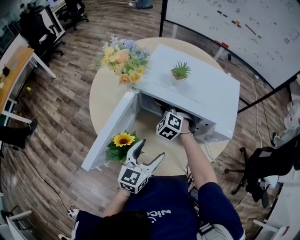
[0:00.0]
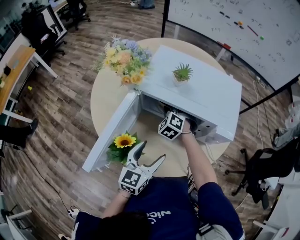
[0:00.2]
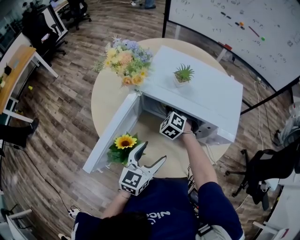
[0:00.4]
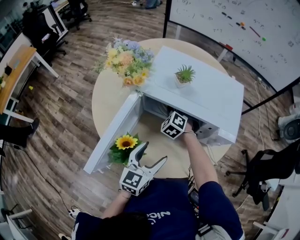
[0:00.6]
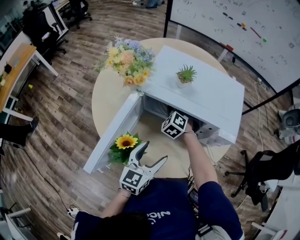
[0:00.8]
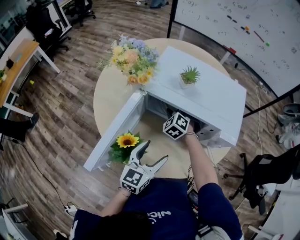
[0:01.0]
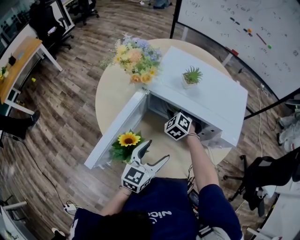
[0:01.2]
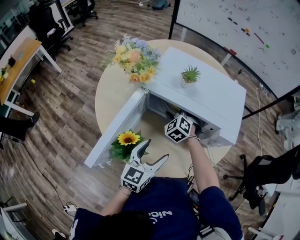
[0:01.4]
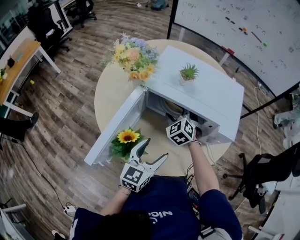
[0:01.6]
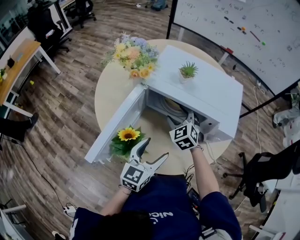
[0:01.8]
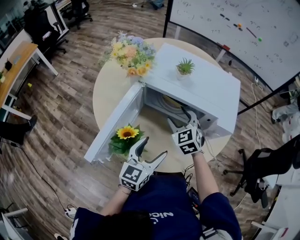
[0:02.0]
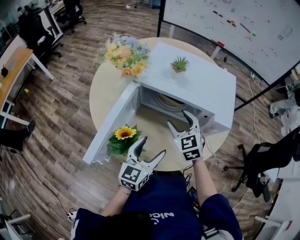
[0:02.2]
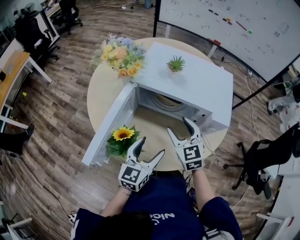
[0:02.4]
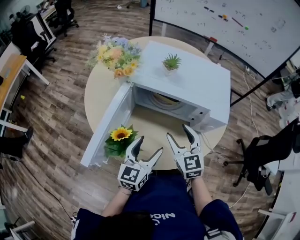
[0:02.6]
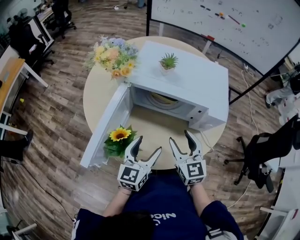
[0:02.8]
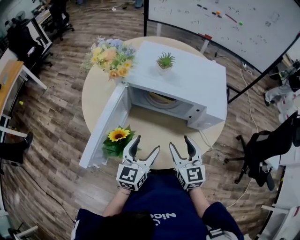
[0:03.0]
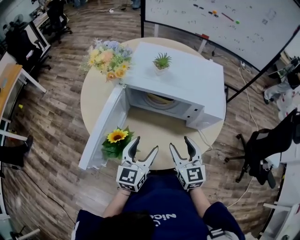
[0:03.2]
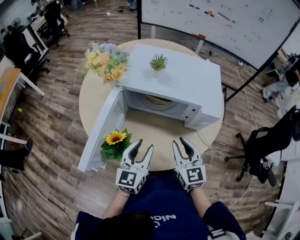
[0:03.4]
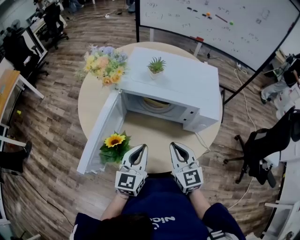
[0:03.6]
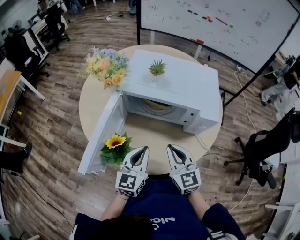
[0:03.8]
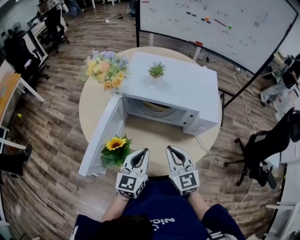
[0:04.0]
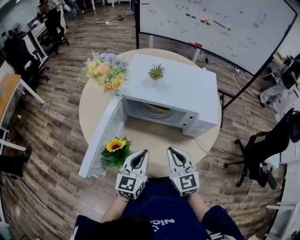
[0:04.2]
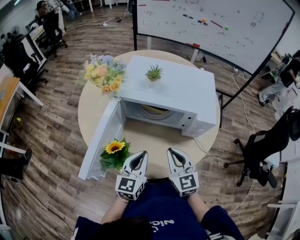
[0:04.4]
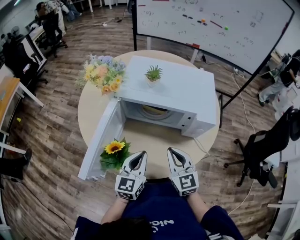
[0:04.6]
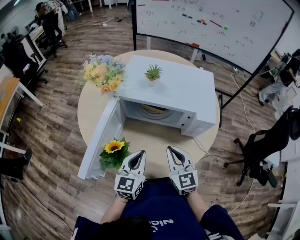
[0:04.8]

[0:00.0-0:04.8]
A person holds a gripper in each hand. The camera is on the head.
0:00.0 to 0:01.6: The right gripper opens up.
0:01.6 to 0:03.2: The right gripper heads backward and to the right, covering roughly 20 cm, and rotates around the line of its fingers by about 40 degrees, clockwise from behind.
0:03.2 to 0:04.8: The right gripper closes up. Meanwhile the left gripper closes.

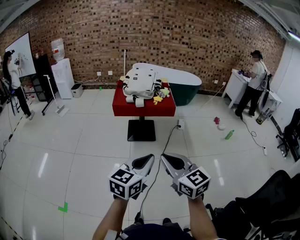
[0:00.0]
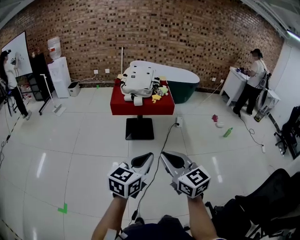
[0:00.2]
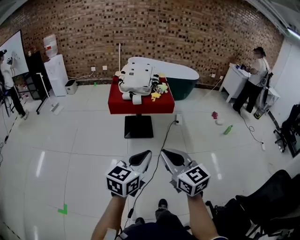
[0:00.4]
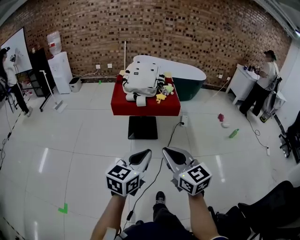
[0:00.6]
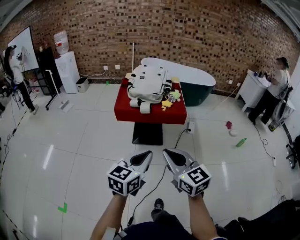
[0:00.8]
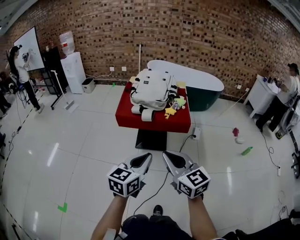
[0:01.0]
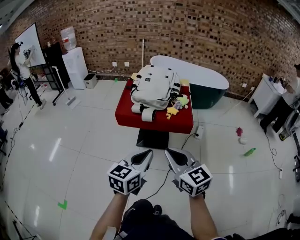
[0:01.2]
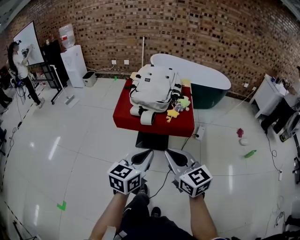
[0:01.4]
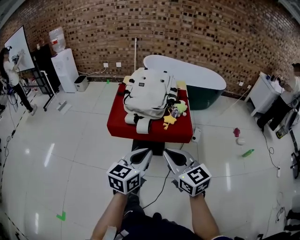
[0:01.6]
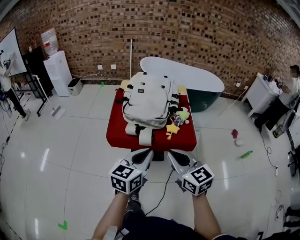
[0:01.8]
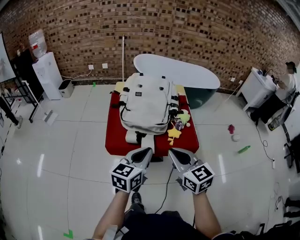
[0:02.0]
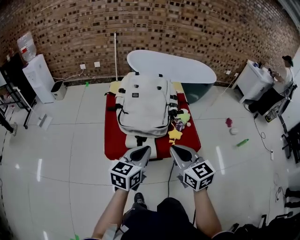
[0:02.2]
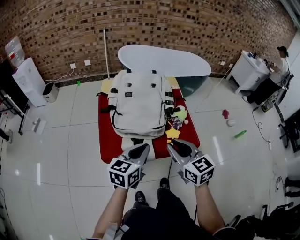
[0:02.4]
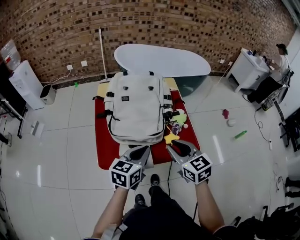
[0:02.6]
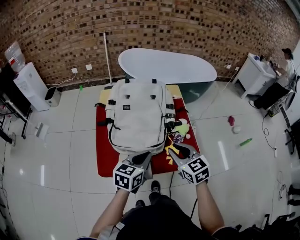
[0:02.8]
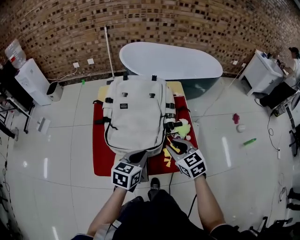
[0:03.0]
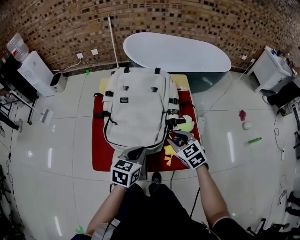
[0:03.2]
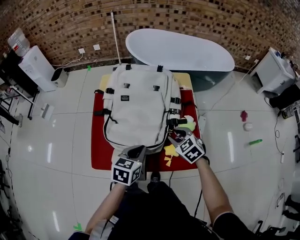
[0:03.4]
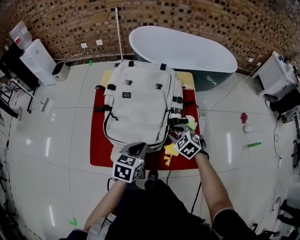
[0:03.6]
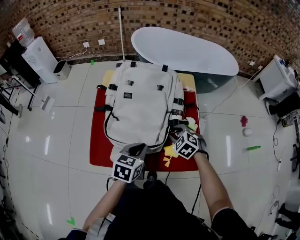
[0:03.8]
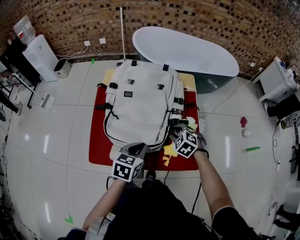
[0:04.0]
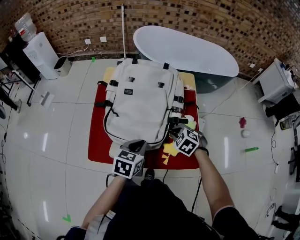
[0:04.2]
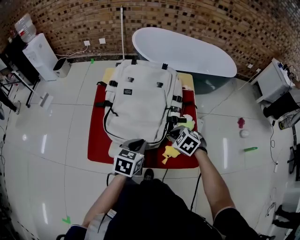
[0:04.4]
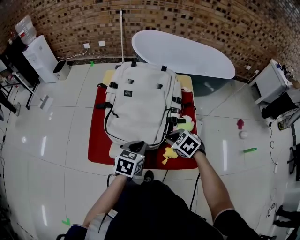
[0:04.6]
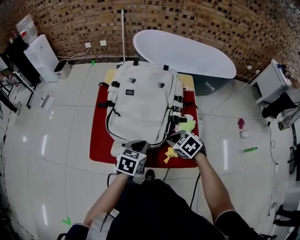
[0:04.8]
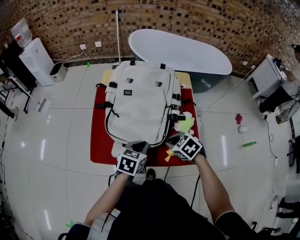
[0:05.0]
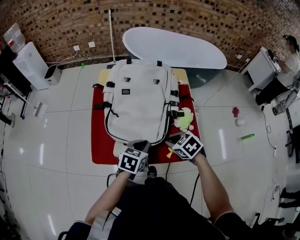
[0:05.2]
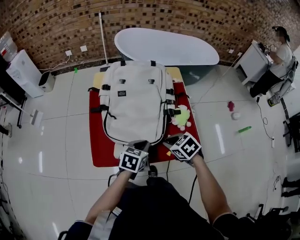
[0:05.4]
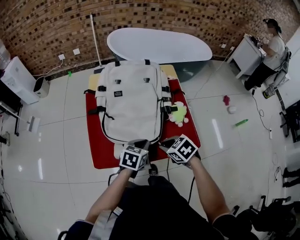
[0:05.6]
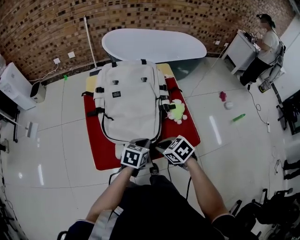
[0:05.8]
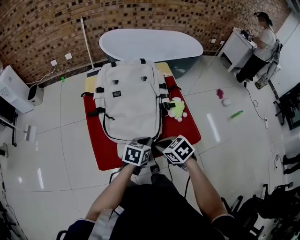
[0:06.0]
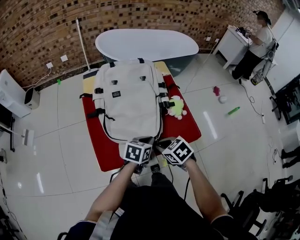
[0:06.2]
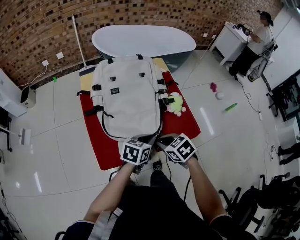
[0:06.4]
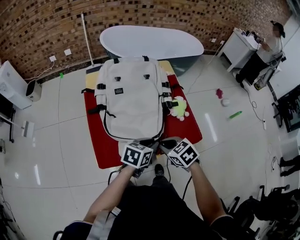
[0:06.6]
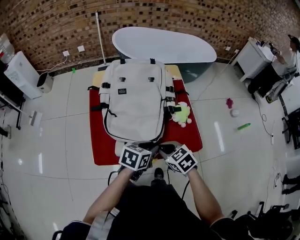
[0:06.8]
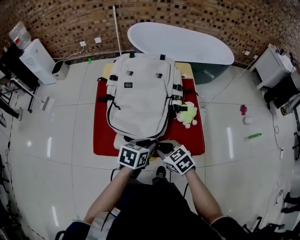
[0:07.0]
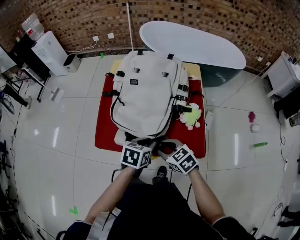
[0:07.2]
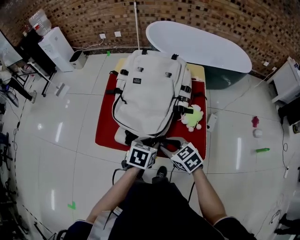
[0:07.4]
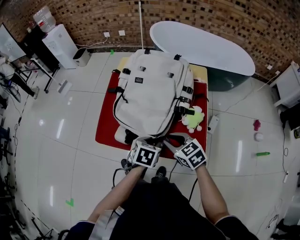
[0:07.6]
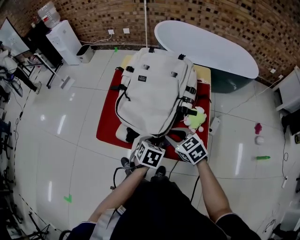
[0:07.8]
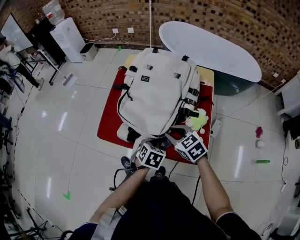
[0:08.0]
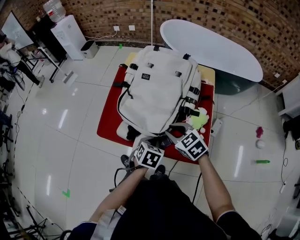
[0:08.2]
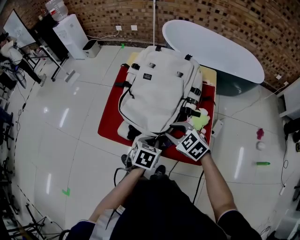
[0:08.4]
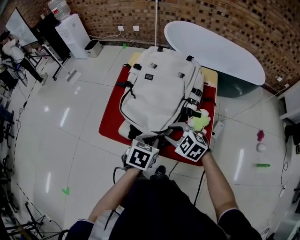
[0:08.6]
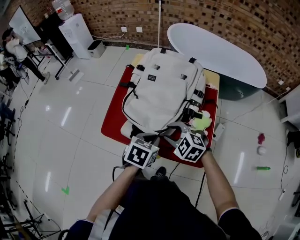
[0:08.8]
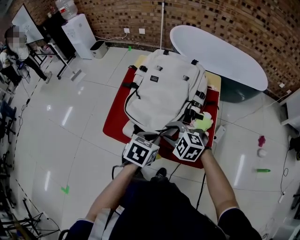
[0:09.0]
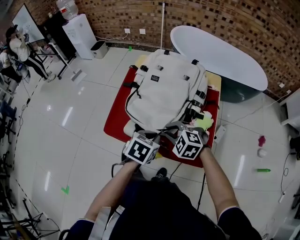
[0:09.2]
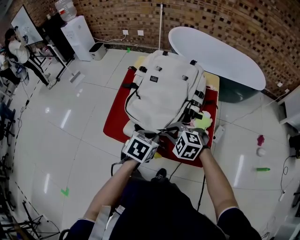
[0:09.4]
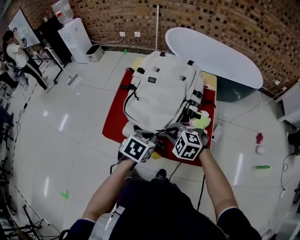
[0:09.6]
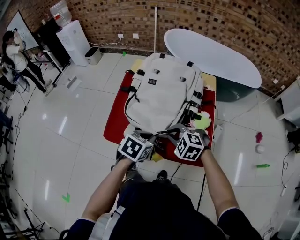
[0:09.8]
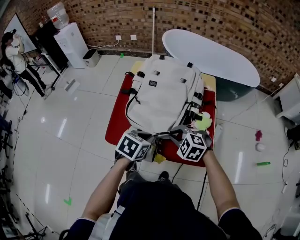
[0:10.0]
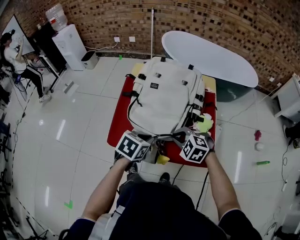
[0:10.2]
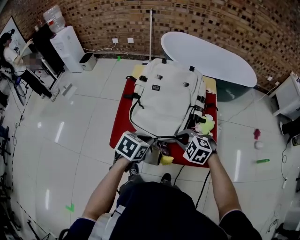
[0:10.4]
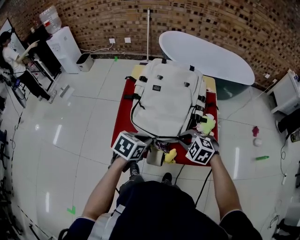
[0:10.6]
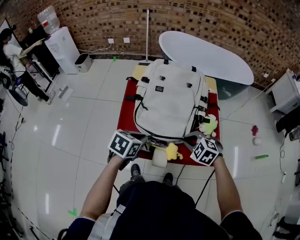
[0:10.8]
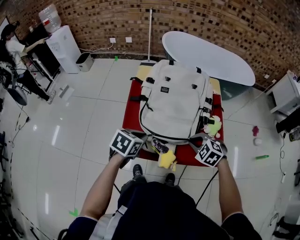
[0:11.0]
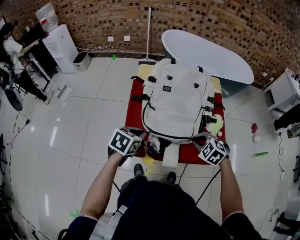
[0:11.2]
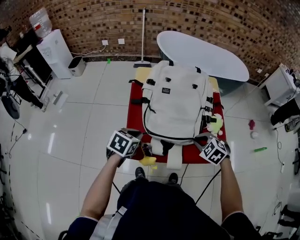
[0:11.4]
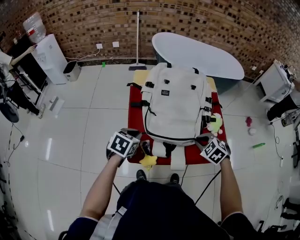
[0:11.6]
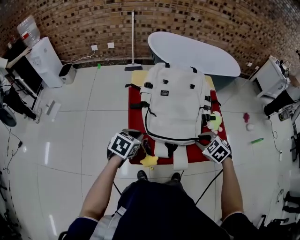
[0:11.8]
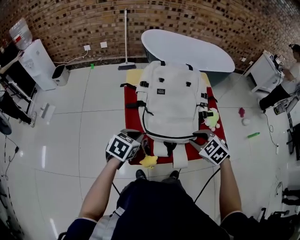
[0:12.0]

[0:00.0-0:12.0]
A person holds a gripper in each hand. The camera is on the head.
0:00.0 to 0:01.6: The two grippers travel together, forward, roughly 40 cm.
0:01.6 to 0:03.0: The grippers both shift forward and downward by some 35 cm. The right gripper rotates about 20 degrees, and opens its fingers, while the left gripper rotates about 20 degrees.
0:03.0 to 0:04.4: The right gripper travels downward by about 10 cm, and points its fingers about 30 degrees further downward.
0:04.4 to 0:06.0: The right gripper goes about 15 cm to the left and backward, and changes its angle by some 40 degrees, while the left gripper rotates approximately 20 degrees.
0:06.0 to 0:07.6: The left gripper turns by approximately 30 degrees, and opens up. Meanwhile the right gripper ends up some 5 cm from where it was, and rotates roughly 30 degrees.
0:07.6 to 0:09.0: The left gripper heads upward, covering some 5 cm, and closes up. The right gripper shifts by some 5 cm, and rolls counterclockwise, seen from behind, by roughly 40 degrees.
0:09.0 to 0:10.4: The left gripper travels to the left by about 5 cm, while the right gripper closes its fingers.
0:10.4 to 0:12.0: The left gripper goes approximately 15 cm to the left. The right gripper changes its angle by approximately 30 degrees.

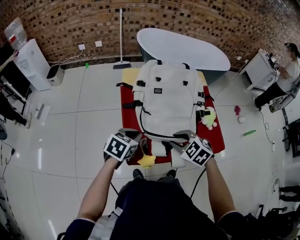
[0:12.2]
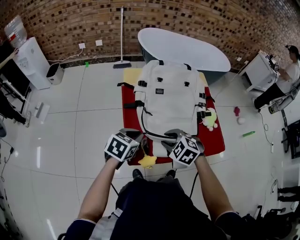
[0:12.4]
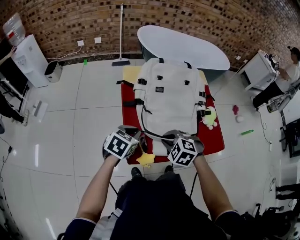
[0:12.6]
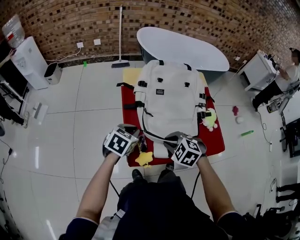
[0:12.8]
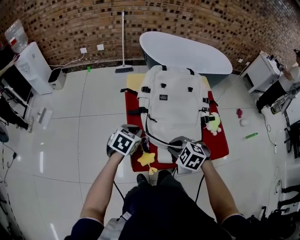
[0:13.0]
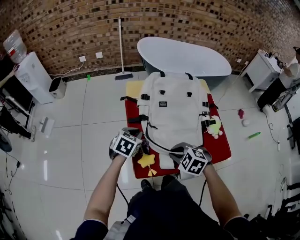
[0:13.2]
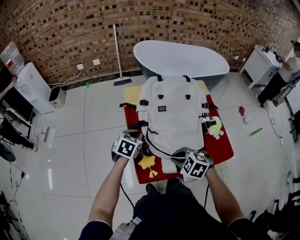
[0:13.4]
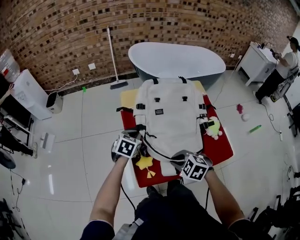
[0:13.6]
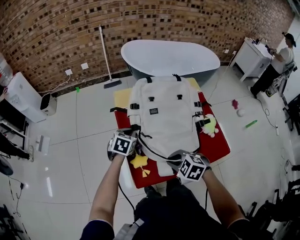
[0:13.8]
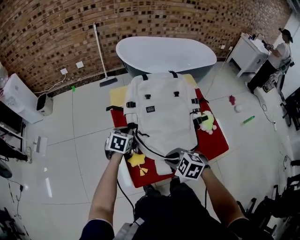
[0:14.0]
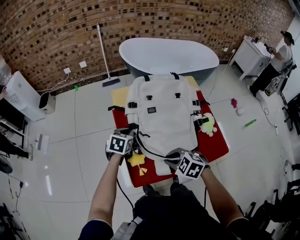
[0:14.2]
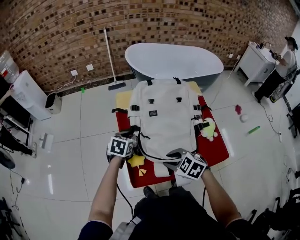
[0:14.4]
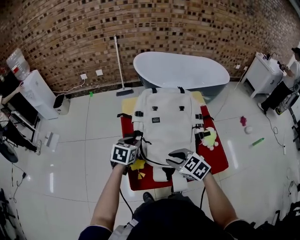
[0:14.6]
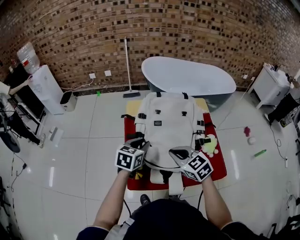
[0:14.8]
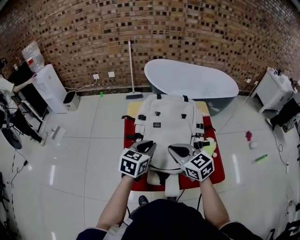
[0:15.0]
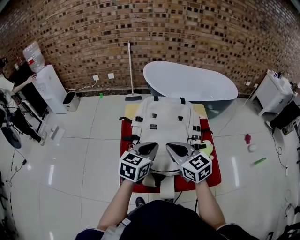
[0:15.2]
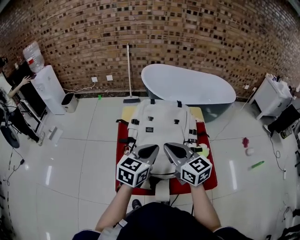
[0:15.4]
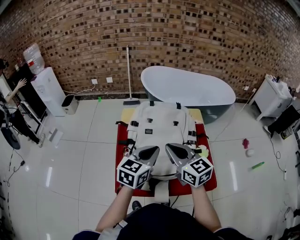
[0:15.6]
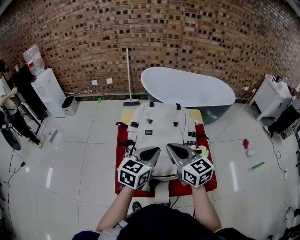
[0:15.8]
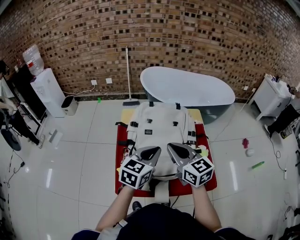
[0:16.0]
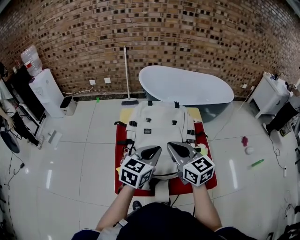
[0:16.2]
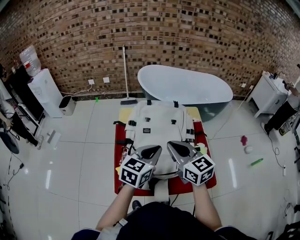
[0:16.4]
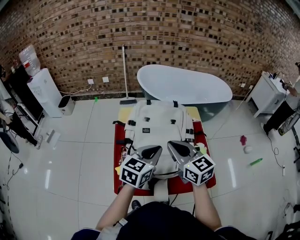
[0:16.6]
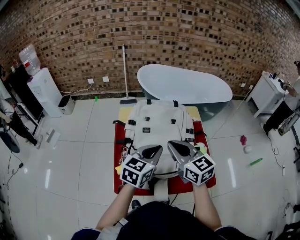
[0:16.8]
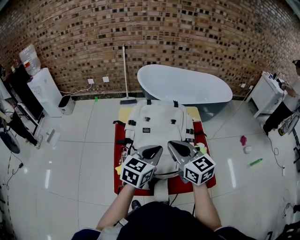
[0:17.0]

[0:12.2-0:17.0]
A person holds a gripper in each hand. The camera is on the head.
0:12.2 to 0:13.8: The left gripper shifts approximately 15 cm forward.
0:13.8 to 0:15.4: The left gripper heads upward, to the right and backward, covering roughly 25 cm, and points its fingers some 30 degrees further upward. Meanwhile the right gripper is displaced upward and forward by some 20 cm, and angles its fingers upward, by roughly 50 degrees.
0:15.4 to 0:17.0: The grippers move only a little.

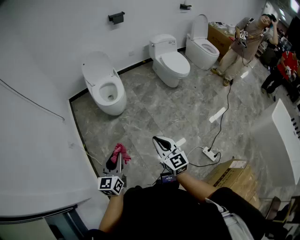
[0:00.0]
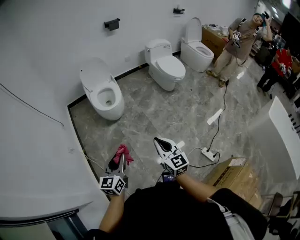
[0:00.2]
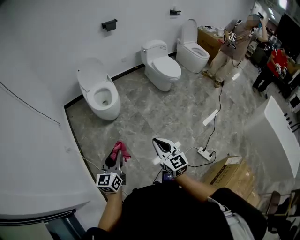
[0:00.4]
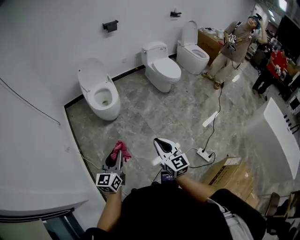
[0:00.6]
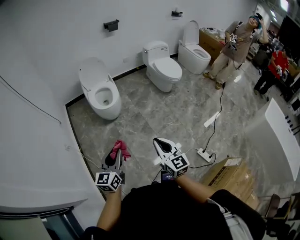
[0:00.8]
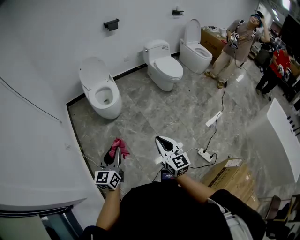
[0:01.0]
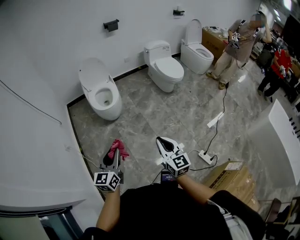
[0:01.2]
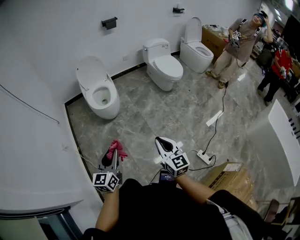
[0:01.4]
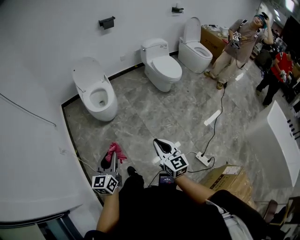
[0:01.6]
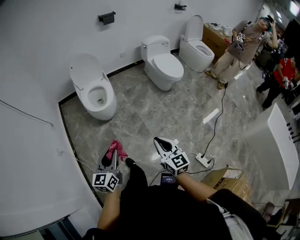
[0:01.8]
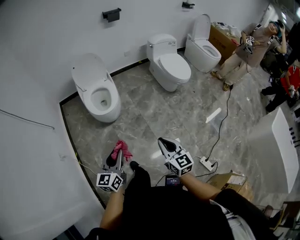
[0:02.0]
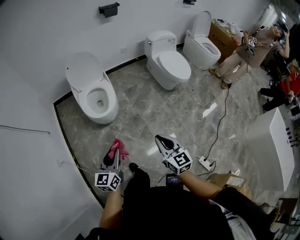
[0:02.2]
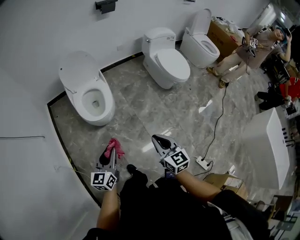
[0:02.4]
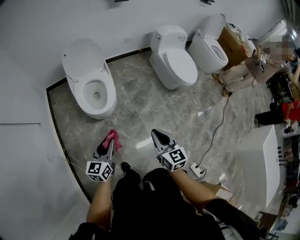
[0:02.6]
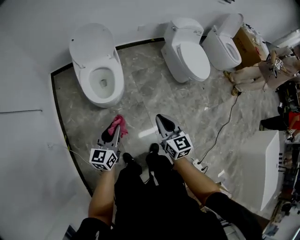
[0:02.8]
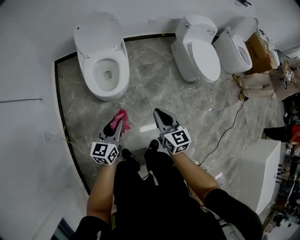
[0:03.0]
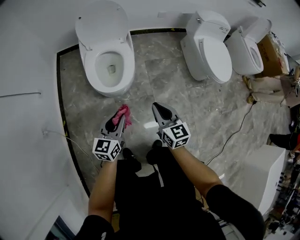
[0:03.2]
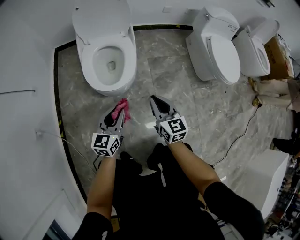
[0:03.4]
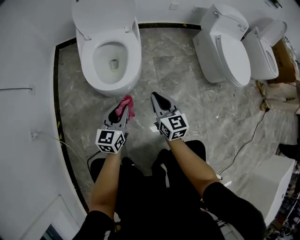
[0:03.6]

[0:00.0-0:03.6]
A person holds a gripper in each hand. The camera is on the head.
0:00.0 to 0:01.8: The right gripper goes about 10 cm to the right and forward. Meanwhile the left gripper travels forward by roughly 10 cm.
0:01.8 to 0:03.6: The pair of grippers is taken forward, some 50 cm. The two grippers go roughly 35 cm downward.
